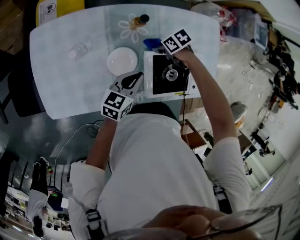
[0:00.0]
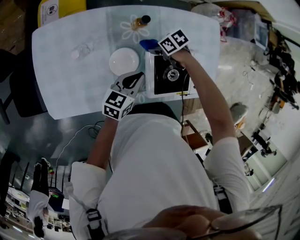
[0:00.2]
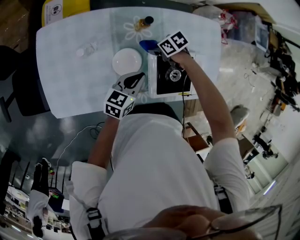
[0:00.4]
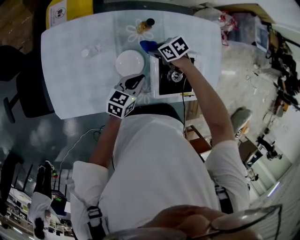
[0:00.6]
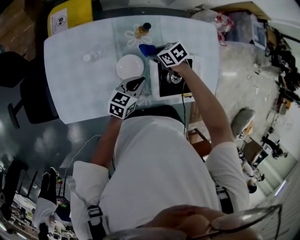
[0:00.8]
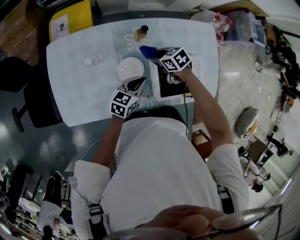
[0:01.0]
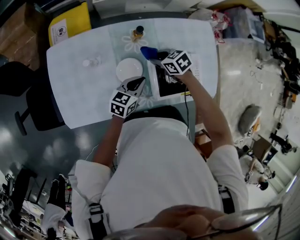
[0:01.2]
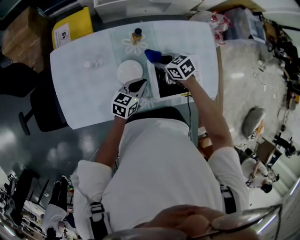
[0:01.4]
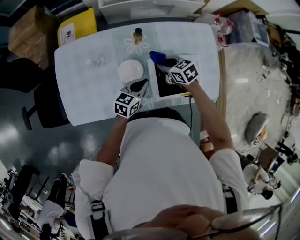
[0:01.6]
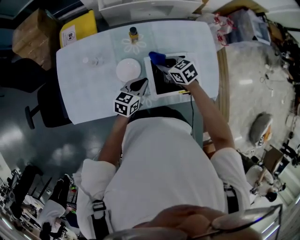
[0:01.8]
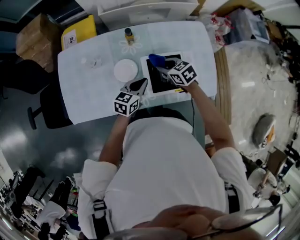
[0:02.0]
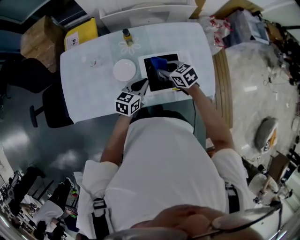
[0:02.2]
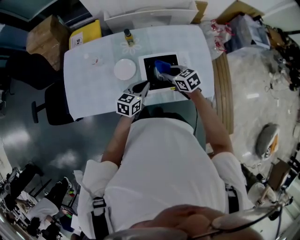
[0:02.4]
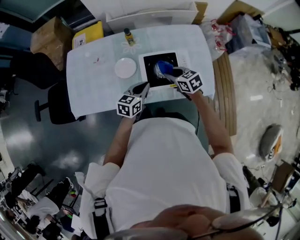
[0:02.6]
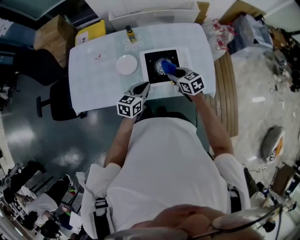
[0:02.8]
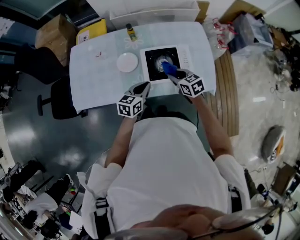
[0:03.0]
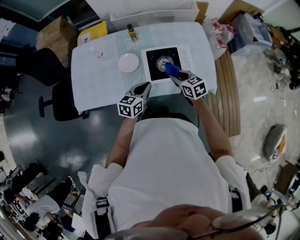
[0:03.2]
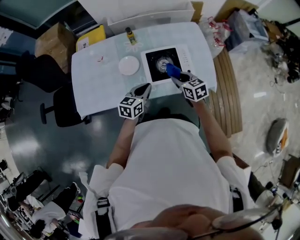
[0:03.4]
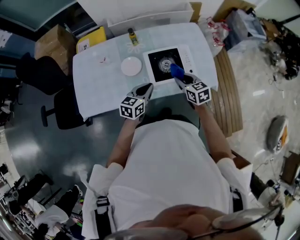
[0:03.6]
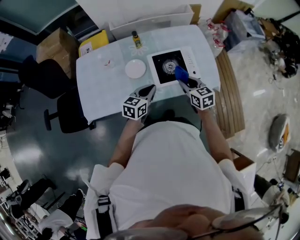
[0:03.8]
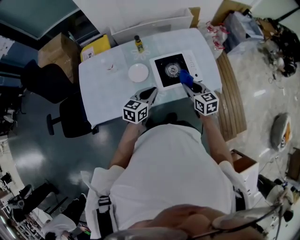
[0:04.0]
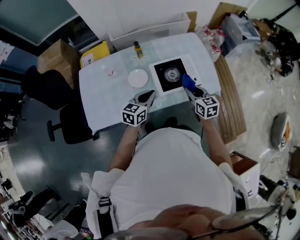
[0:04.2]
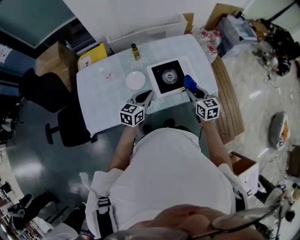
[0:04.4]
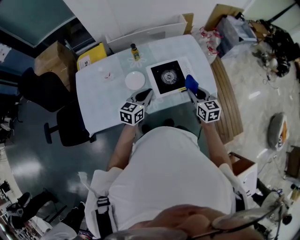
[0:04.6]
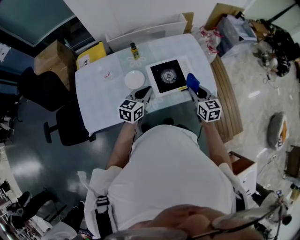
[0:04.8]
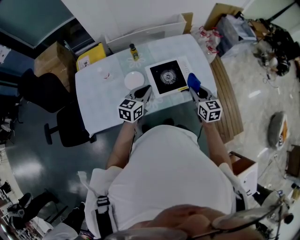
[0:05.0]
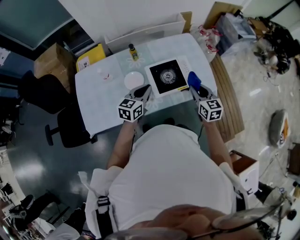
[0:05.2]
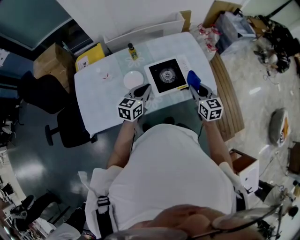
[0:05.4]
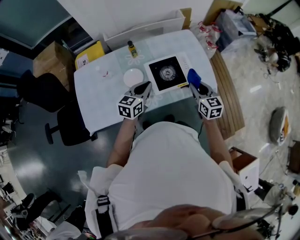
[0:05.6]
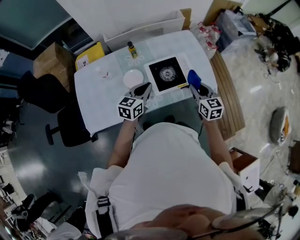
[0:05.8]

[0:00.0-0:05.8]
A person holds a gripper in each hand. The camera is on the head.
0:00.0 to 0:01.4: The right gripper shifts about 15 cm upward, and swivels approximately 30 degrees.
0:01.4 to 0:02.8: The two grippers go some 20 cm backward and to the right.
0:02.8 to 0:04.4: The right gripper heads upward and backward, covering about 10 cm, and swivels roughly 30 degrees; the left gripper moves upward and to the left, about 10 cm.
0:04.4 to 0:05.8: The grippers move only a little.

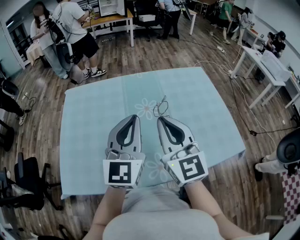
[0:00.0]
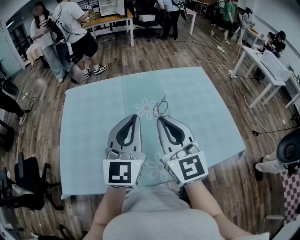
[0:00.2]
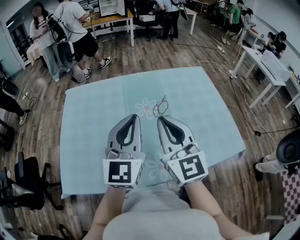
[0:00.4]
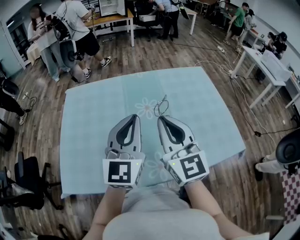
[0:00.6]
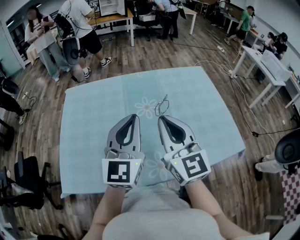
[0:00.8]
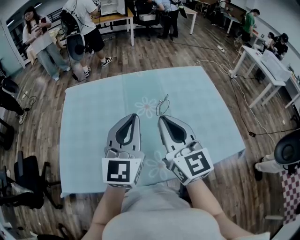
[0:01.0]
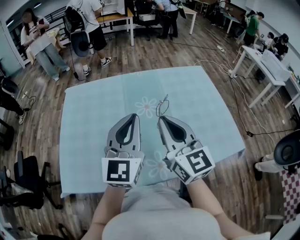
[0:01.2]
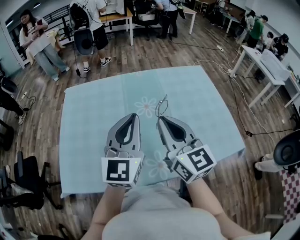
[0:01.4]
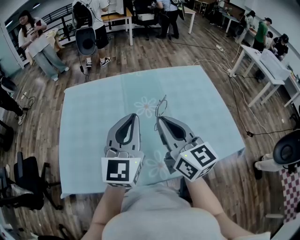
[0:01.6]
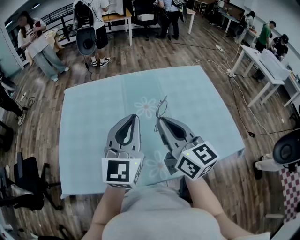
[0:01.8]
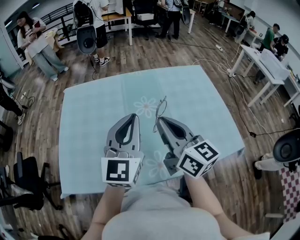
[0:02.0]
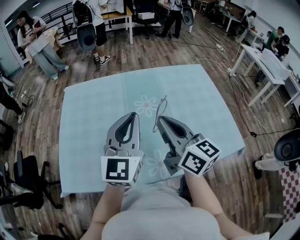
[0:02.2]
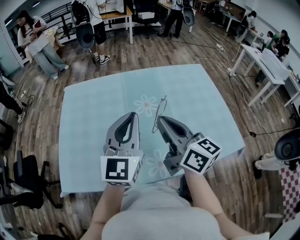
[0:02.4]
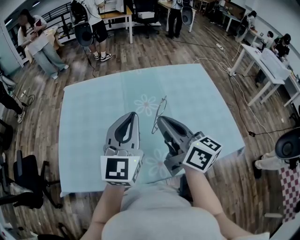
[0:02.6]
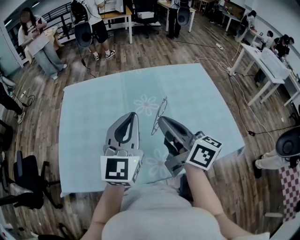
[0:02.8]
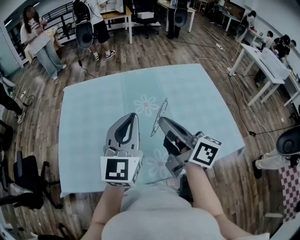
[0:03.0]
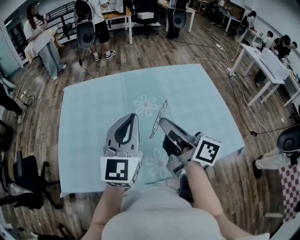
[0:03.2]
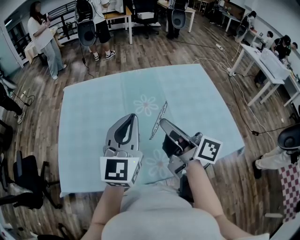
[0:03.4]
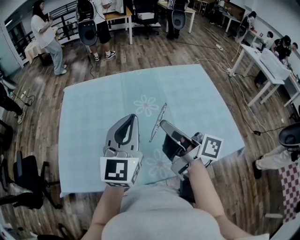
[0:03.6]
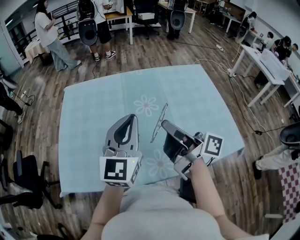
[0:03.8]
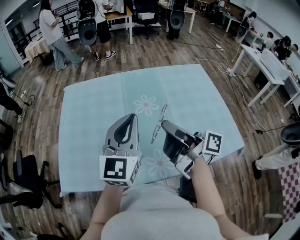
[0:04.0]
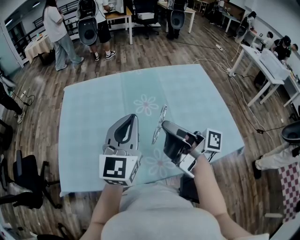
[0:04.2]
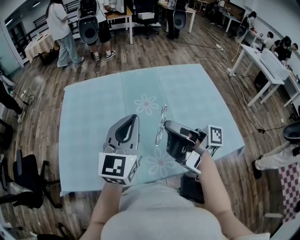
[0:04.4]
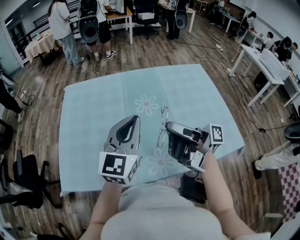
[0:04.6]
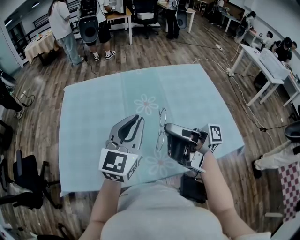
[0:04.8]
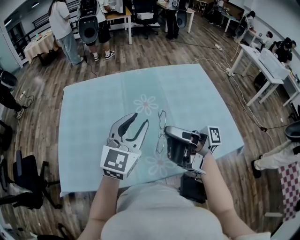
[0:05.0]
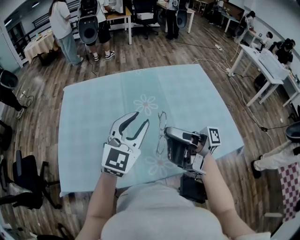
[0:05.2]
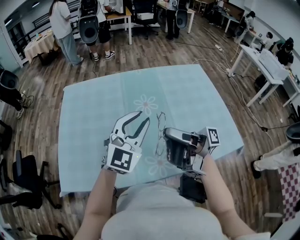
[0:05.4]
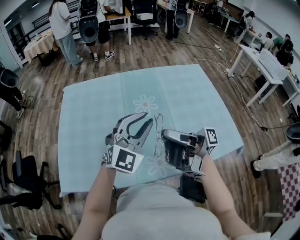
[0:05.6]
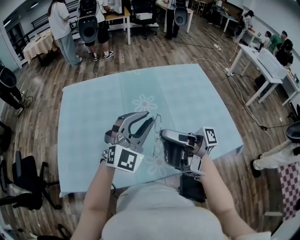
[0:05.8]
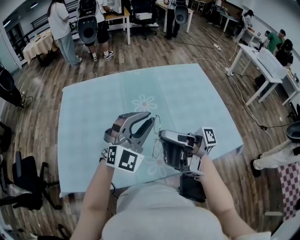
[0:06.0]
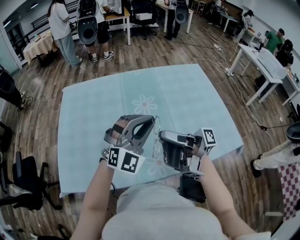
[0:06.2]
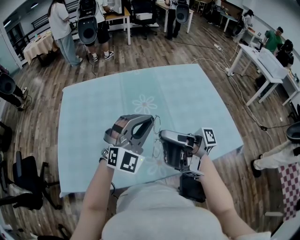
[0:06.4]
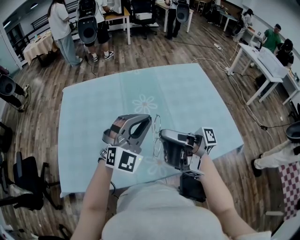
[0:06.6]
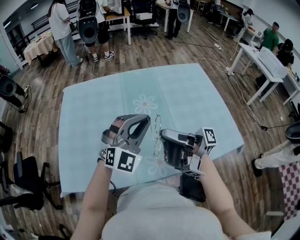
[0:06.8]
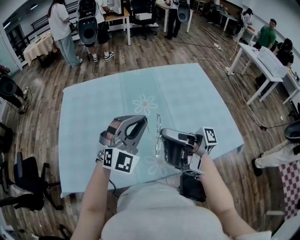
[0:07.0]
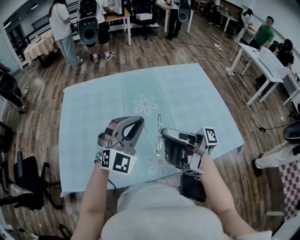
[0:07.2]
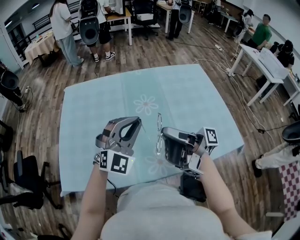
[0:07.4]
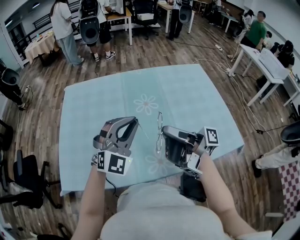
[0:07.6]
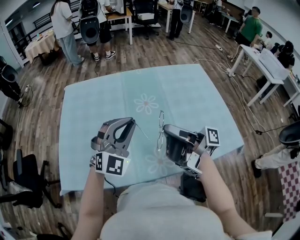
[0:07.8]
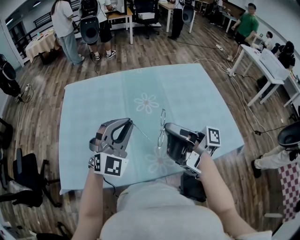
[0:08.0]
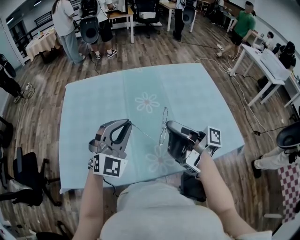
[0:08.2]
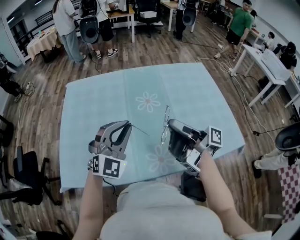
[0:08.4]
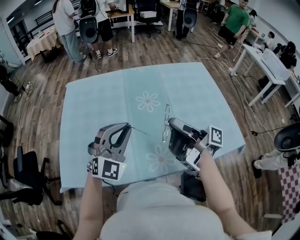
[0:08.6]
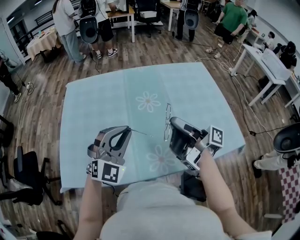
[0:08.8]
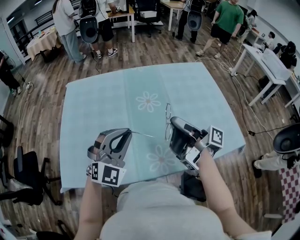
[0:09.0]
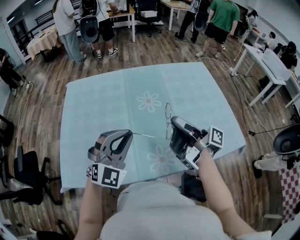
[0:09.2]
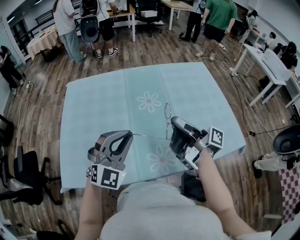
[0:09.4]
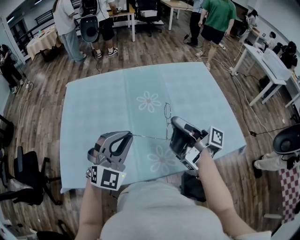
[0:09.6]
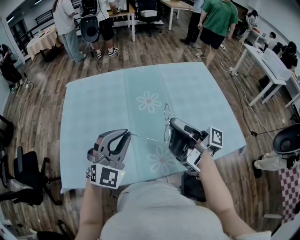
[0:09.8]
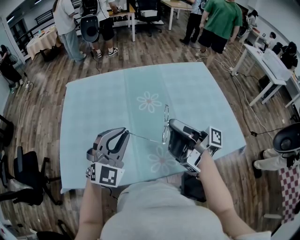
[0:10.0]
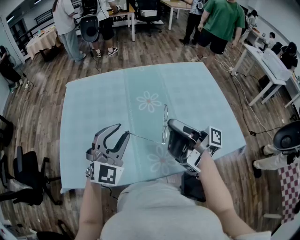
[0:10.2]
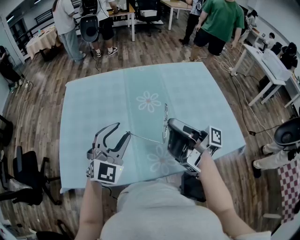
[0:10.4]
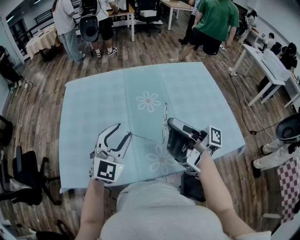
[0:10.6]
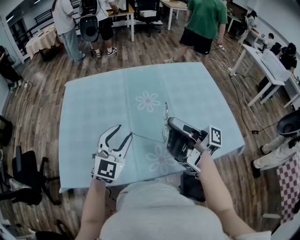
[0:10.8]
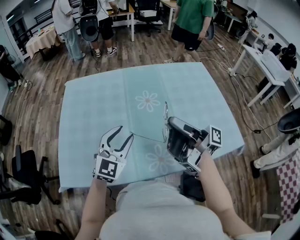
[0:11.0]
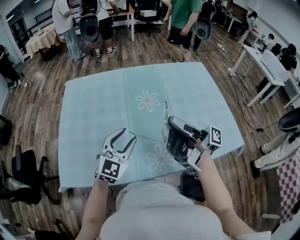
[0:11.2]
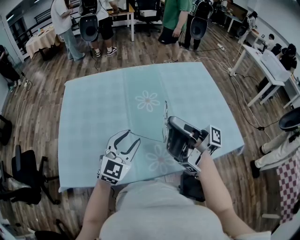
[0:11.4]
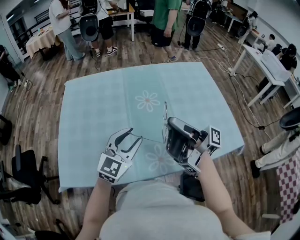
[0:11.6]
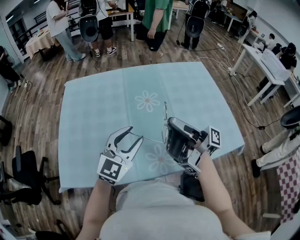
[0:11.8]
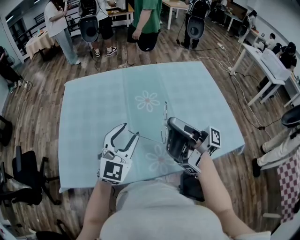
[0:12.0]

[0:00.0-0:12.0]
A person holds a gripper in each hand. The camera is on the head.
0:04.4 to 0:06.0: The left gripper shifts by about 5 cm, and rolls clockwise, seen from behind, by approximately 40 degrees.
0:06.0 to 0:07.6: The left gripper moves approximately 5 cm.
0:07.6 to 0:09.0: The left gripper ends up some 5 cm from where it was.
0:09.0 to 0:10.4: The left gripper opens its fingers.

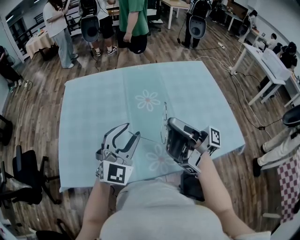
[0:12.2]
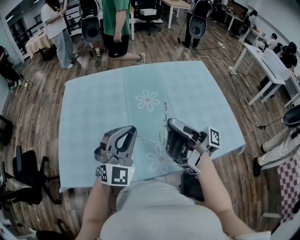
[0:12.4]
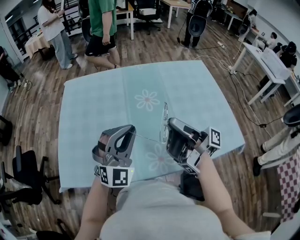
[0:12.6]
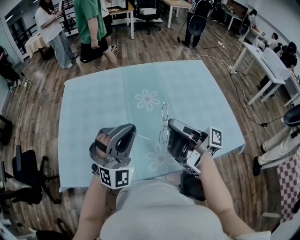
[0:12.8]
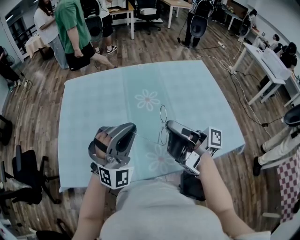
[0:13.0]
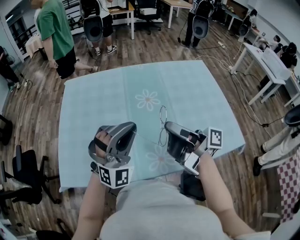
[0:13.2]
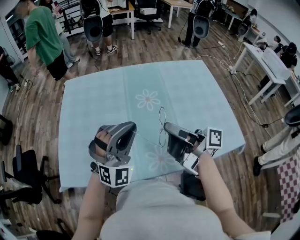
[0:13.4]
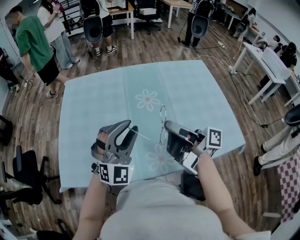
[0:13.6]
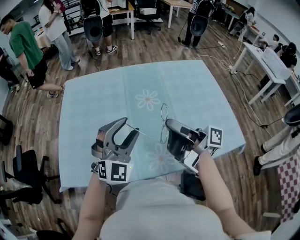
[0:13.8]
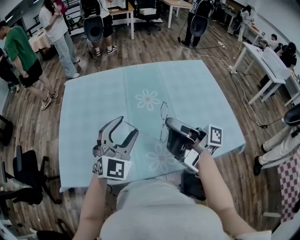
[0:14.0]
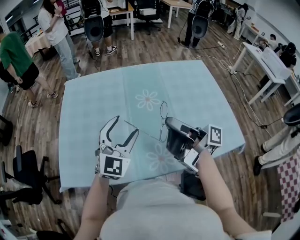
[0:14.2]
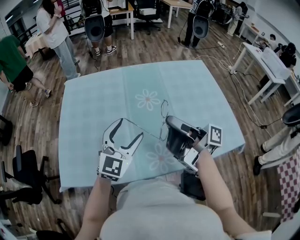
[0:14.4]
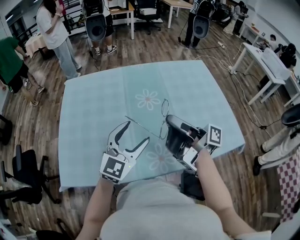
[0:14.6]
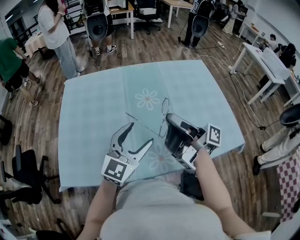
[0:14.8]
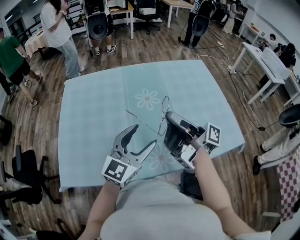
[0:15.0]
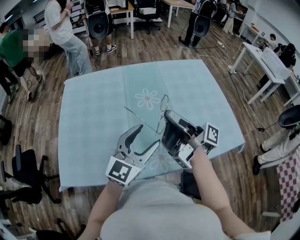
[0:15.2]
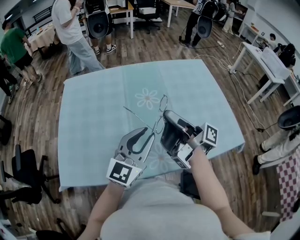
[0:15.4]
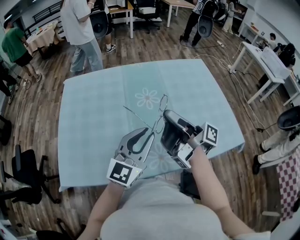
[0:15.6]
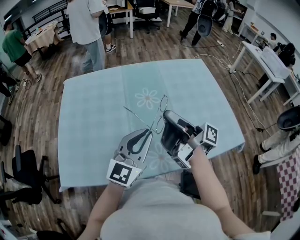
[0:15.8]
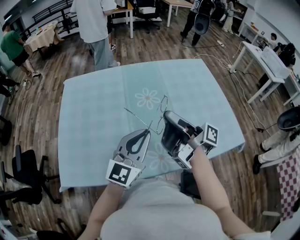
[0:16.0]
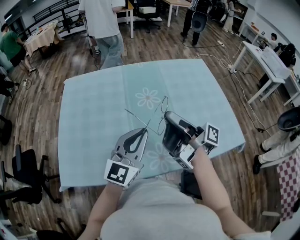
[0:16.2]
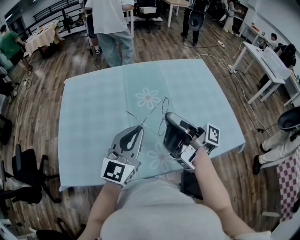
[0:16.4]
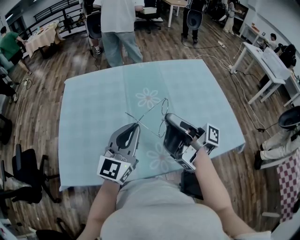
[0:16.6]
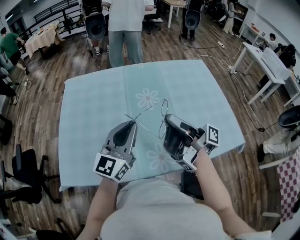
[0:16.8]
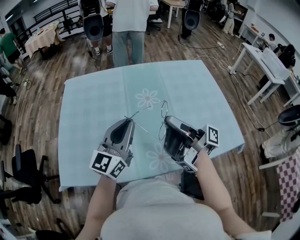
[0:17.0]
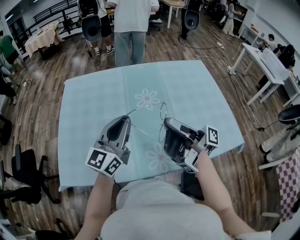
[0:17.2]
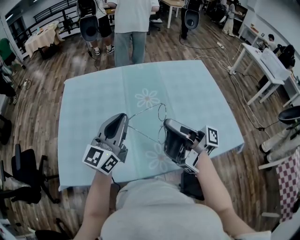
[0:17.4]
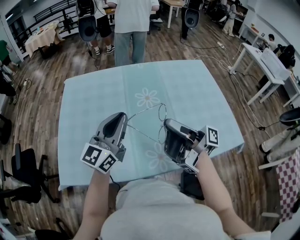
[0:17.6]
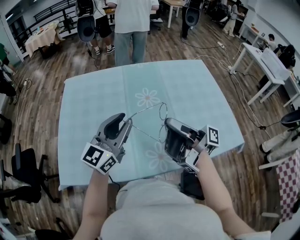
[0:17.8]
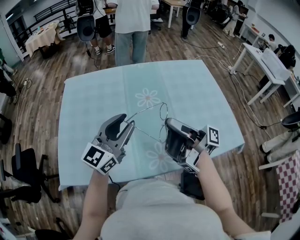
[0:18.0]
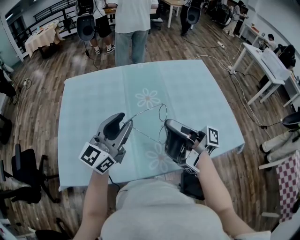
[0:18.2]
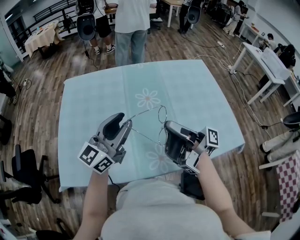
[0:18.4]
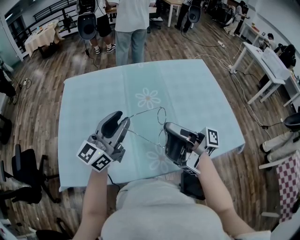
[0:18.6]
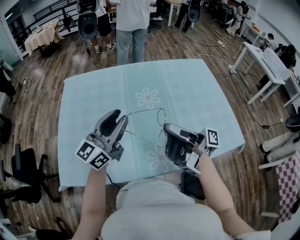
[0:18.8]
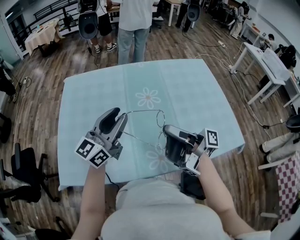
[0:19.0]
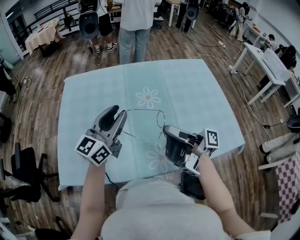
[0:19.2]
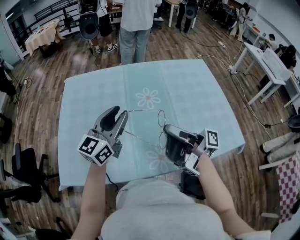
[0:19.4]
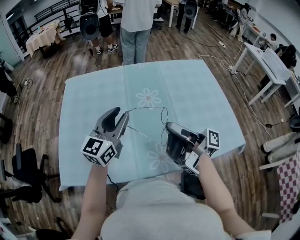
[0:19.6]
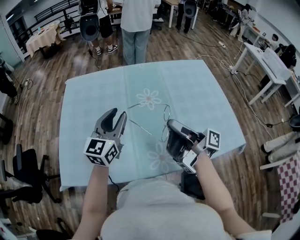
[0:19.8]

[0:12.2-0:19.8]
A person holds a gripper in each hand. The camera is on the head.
0:12.2 to 0:13.8: The left gripper closes, then reopens.
0:13.8 to 0:15.2: The left gripper changes place by some 5 cm, and rotates around the line of its fingers by about 40 degrees, counterclockwise from behind.
0:15.2 to 0:16.8: The left gripper ends up roughly 5 cm from where it was, and closes.
0:16.8 to 0:18.2: The left gripper opens up.
0:18.2 to 0:19.8: The left gripper ends up roughly 5 cm from where it was, and rotates some 20 degrees.
